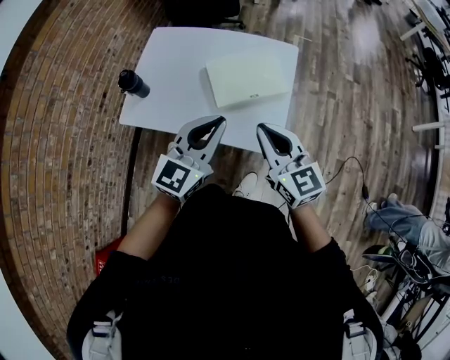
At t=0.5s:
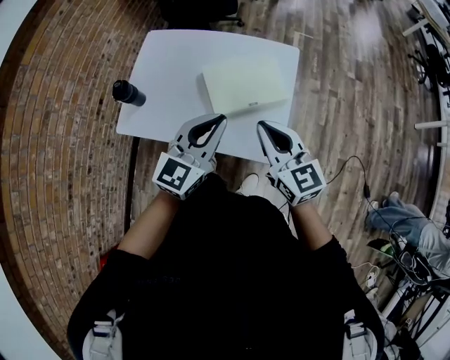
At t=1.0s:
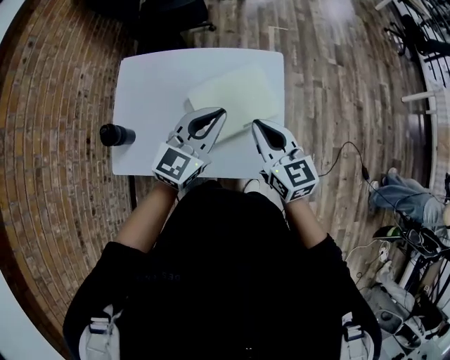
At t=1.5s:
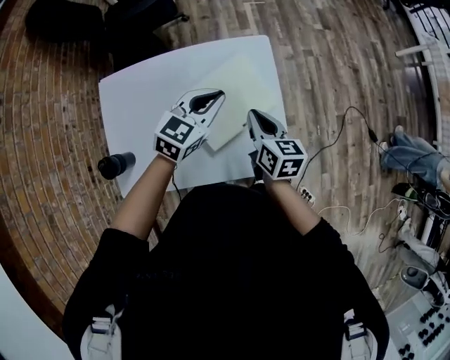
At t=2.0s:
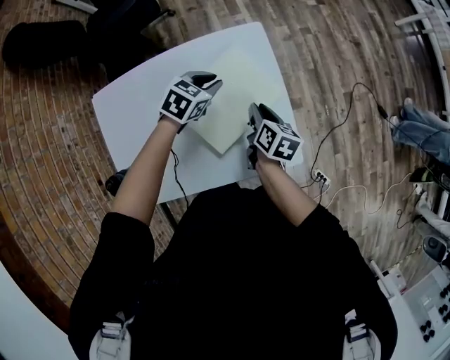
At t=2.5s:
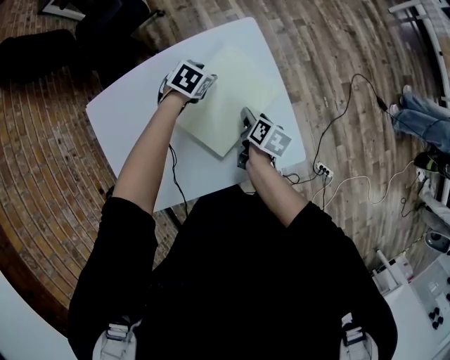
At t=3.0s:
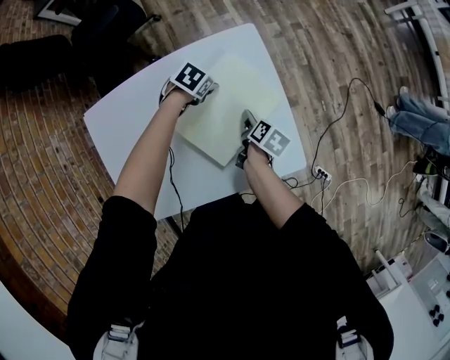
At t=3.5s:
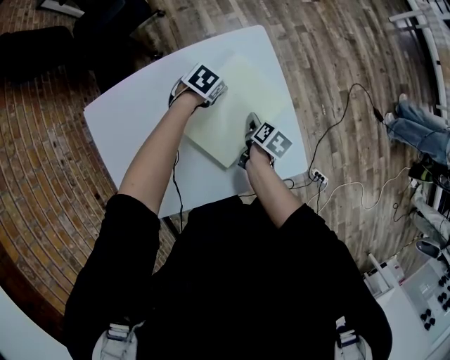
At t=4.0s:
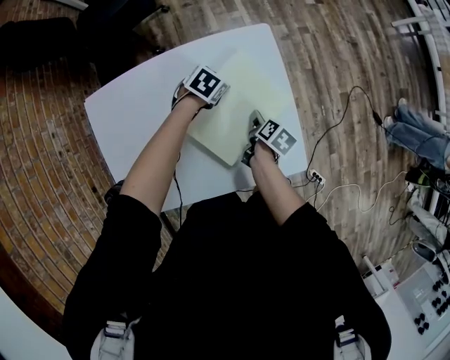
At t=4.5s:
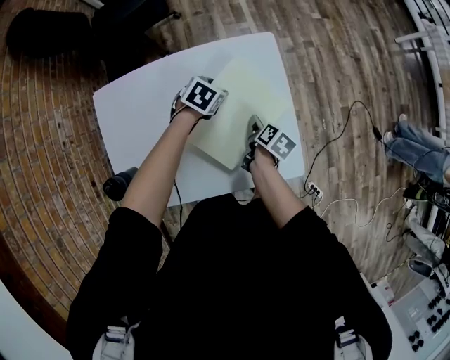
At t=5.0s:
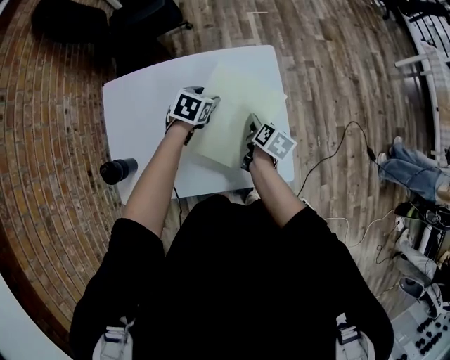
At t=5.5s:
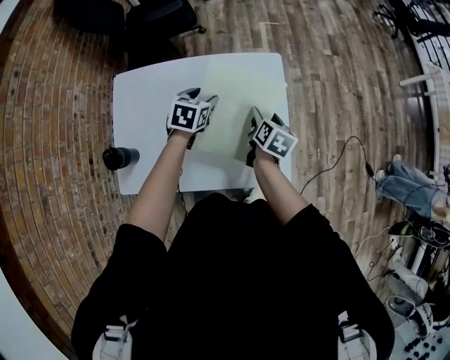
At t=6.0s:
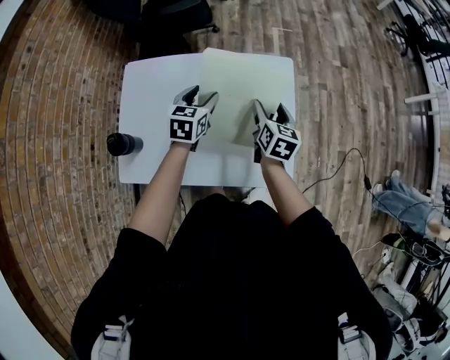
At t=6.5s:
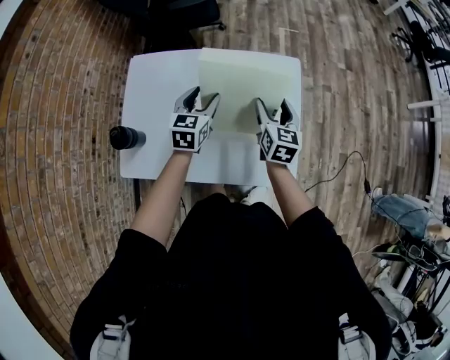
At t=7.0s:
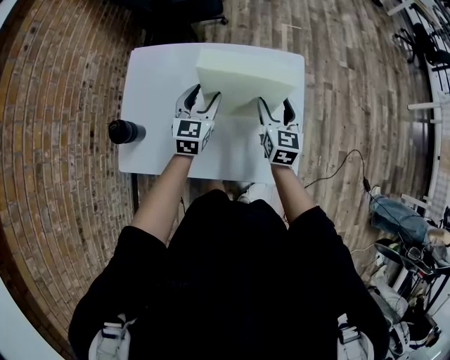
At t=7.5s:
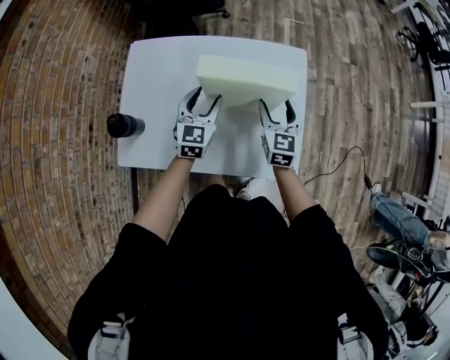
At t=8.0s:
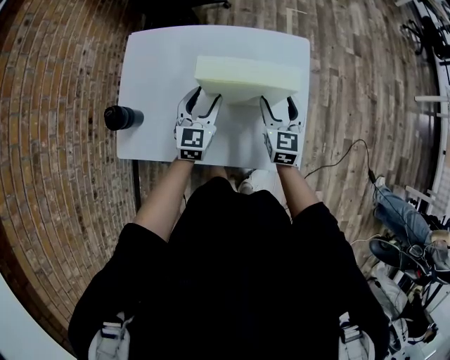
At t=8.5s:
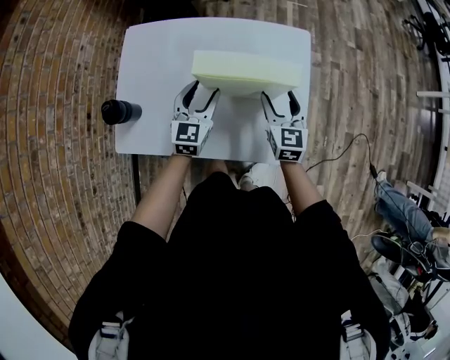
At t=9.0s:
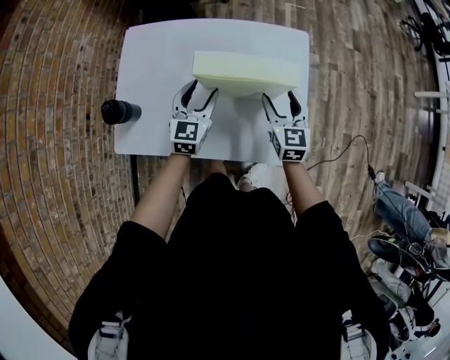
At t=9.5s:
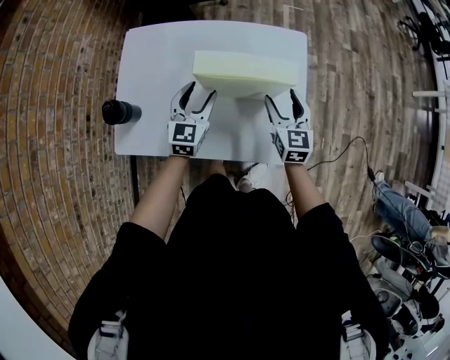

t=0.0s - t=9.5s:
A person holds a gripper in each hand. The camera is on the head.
t=0.0s - t=2.0s: The left gripper changes place by approximately 40 cm, and angles its fingers downward, by roughly 40 degrees. The right gripper shifts by about 35 cm, and tips its fingers downward by approximately 30 degrees.
t=2.0s - t=4.0s: Both grippers travel together downward, approximately 10 cm. The right gripper rotates some 30 degrees, and opens its fingers, while the left gripper opens up.
t=4.0s - t=5.5s: Both grippers move upward, about 15 cm. The left gripper rotates about 40 degrees, while the right gripper swivels roughly 30 degrees.
t=5.5s - t=7.5s: The right gripper moves to the left, about 5 cm, and rolls counterclockwise, seen from behind, by approximately 40 degrees; the left gripper goes roughly 10 cm backward and to the left, and swivels about 30 degrees.
t=7.5s - t=9.5s: There are only small adjustments of the grippers.

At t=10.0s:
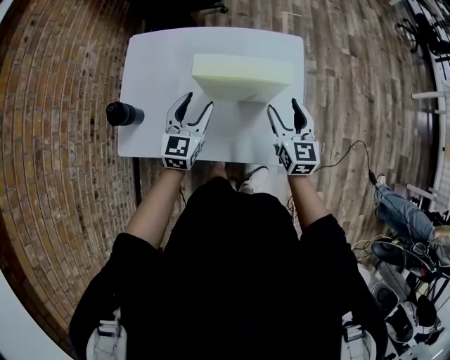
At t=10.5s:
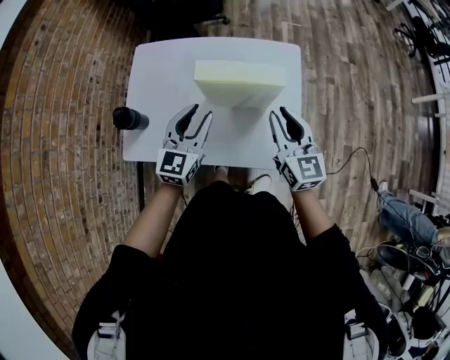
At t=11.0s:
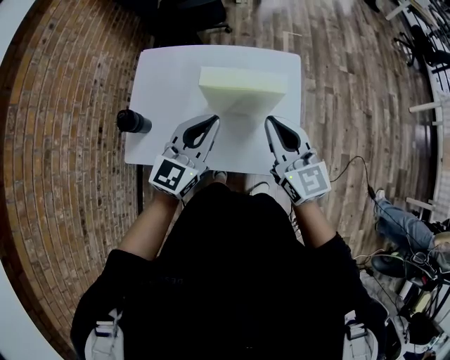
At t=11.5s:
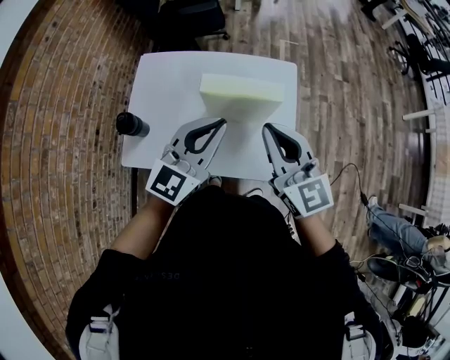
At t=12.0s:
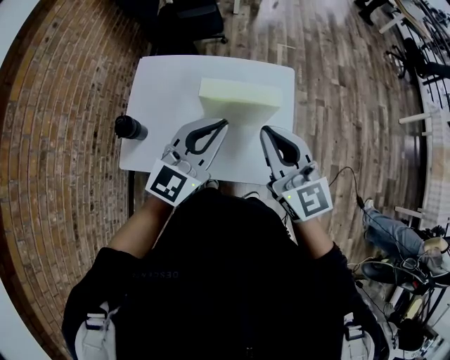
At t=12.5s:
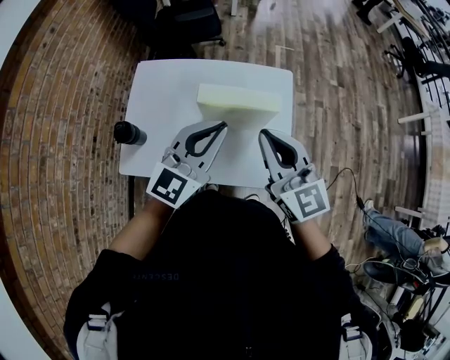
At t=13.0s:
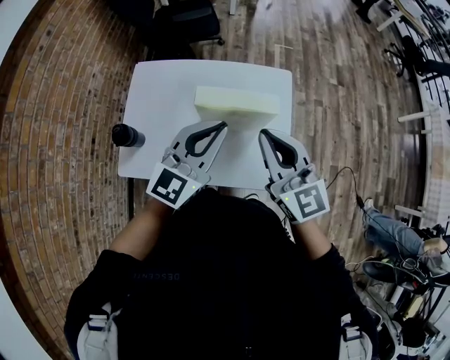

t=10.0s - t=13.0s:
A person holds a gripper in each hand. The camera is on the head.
t=10.0s - t=11.5s: Both grippers move upward, about 20 cm. The right gripper turns by roughly 30 degrees, and closes, while the left gripper rotates roughly 20 degrees, and closes.
t=11.5s - t=13.0s: The grippers make only small movements.

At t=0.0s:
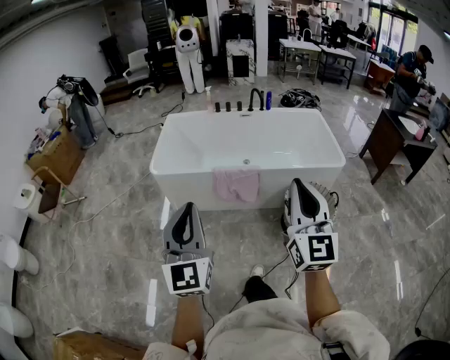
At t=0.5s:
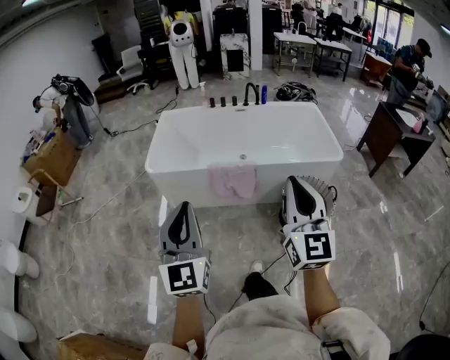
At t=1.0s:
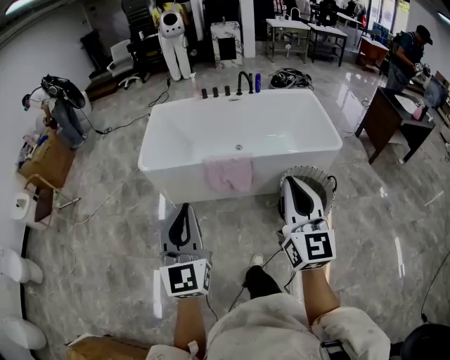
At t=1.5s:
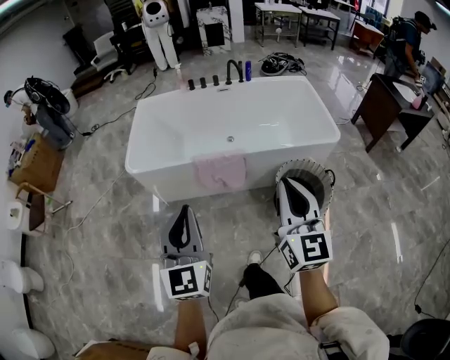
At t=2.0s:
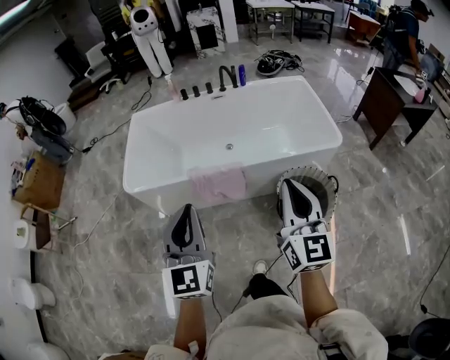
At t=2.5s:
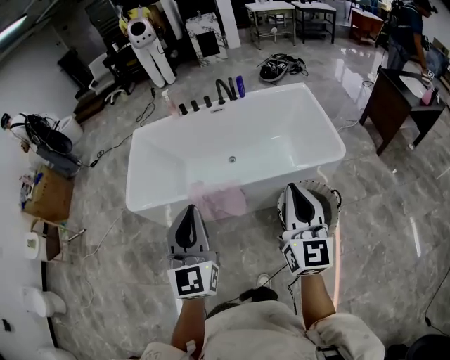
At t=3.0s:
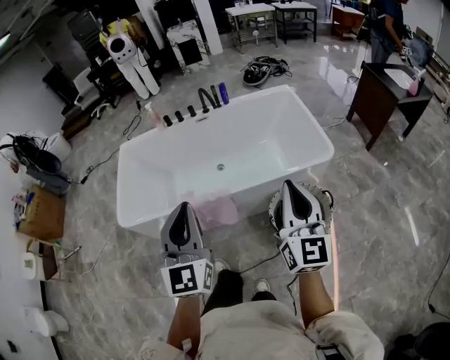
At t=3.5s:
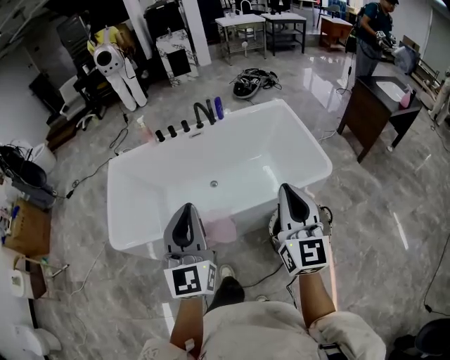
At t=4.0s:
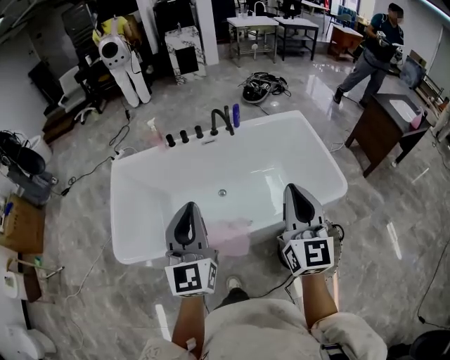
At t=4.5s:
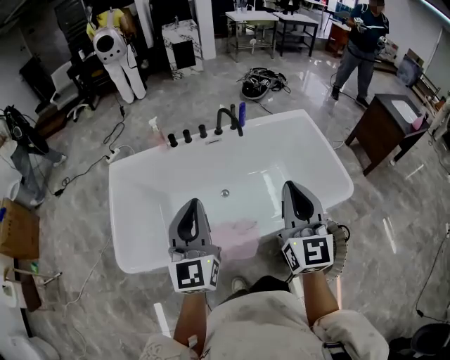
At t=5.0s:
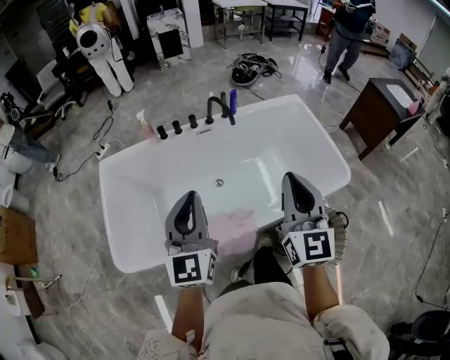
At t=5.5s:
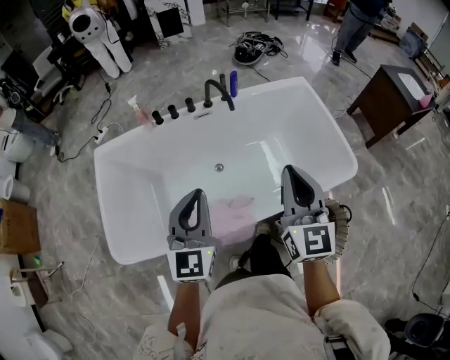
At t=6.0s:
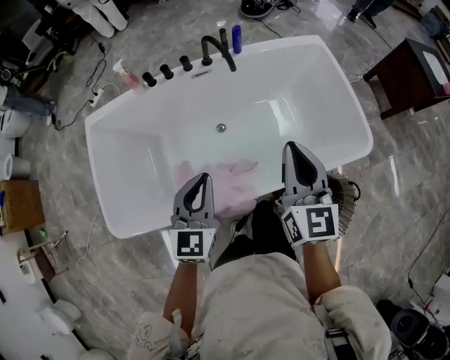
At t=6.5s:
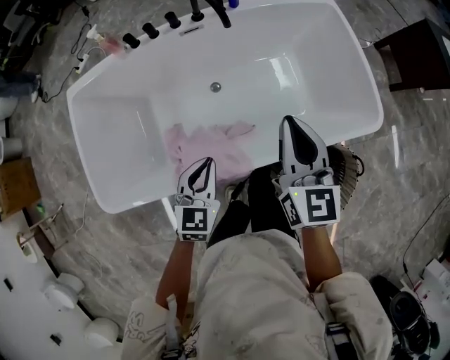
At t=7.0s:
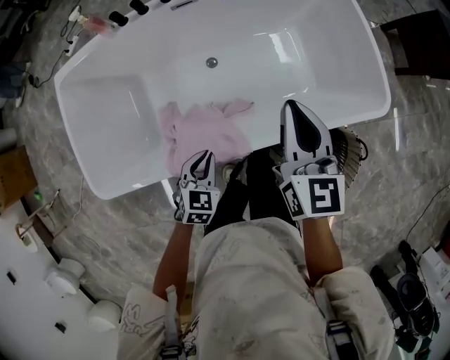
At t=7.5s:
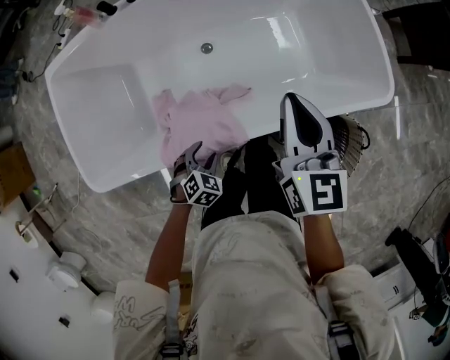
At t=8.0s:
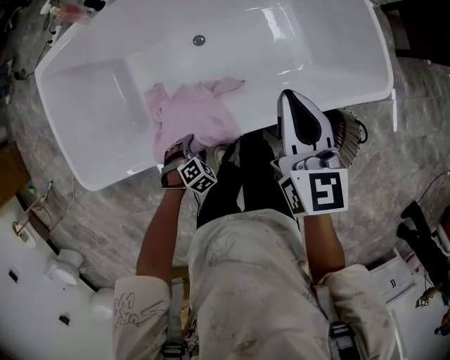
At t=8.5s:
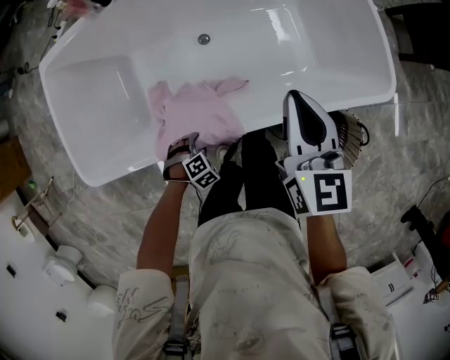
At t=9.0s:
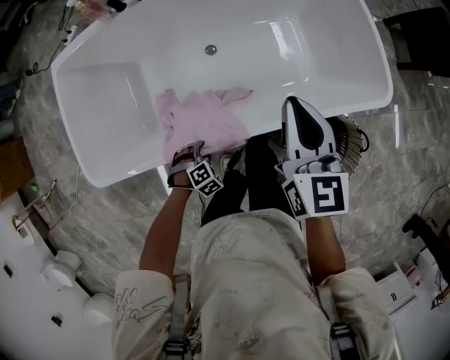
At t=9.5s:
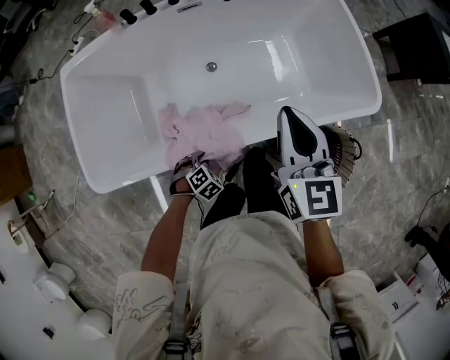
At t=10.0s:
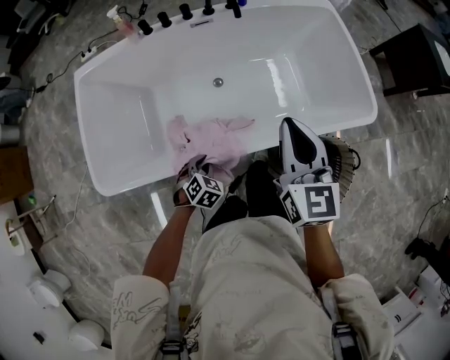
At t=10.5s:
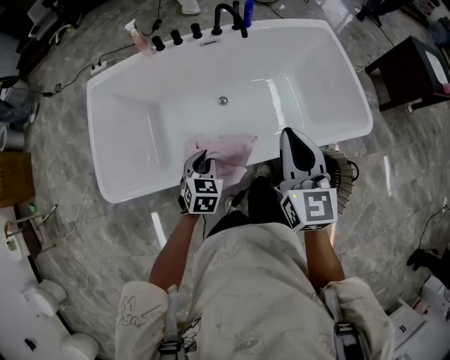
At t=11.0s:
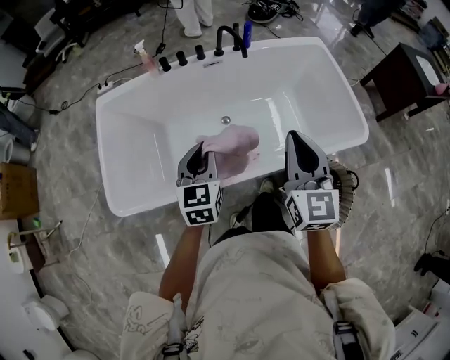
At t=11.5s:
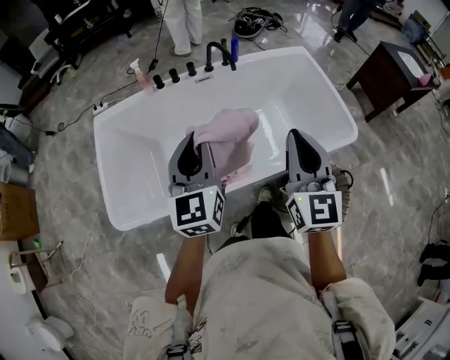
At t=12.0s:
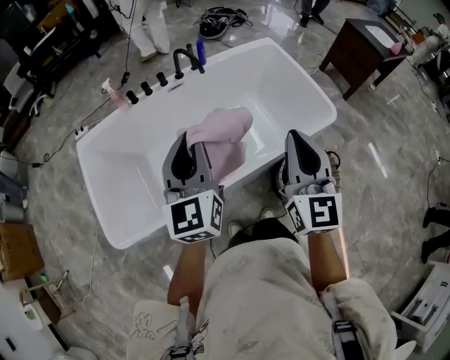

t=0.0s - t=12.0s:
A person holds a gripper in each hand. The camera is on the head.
t=0.0s - t=2.0s: The left gripper heads forward and to the right, covering roughly 25 cm; the right gripper goes some 25 cm forward, to the right and downward.
t=2.0s - t=4.0s: The grippers both shift forward by approximately 35 cm.
t=4.0s - t=6.0s: The right gripper travels forward and downward by roughly 25 cm. The left gripper goes roughly 25 cm downward and forward, and rotates approximately 30 degrees.
t=6.0s - t=8.0s: The left gripper is displaced downward by approximately 40 cm, tips its fingers downward by approximately 60 degrees, and opens. The right gripper heads downward, covering about 15 cm.
t=8.0s - t=10.0s: The left gripper goes approximately 15 cm upward, turns by some 30 degrees, and closes up; the right gripper changes place by some 15 cm.
t=10.0s - t=12.0s: The left gripper is displaced upward by about 40 cm, and angles its fingers upward, by some 60 degrees, while the right gripper moves upward and backward, about 20 cm, and swivels approximately 20 degrees.

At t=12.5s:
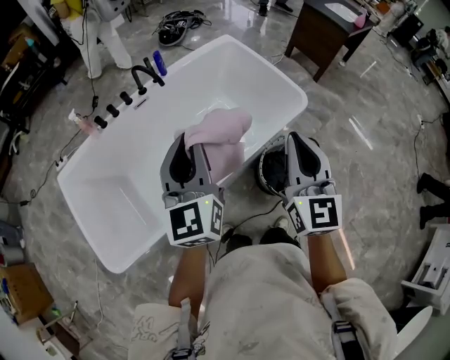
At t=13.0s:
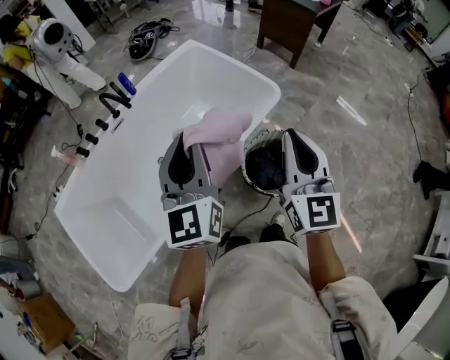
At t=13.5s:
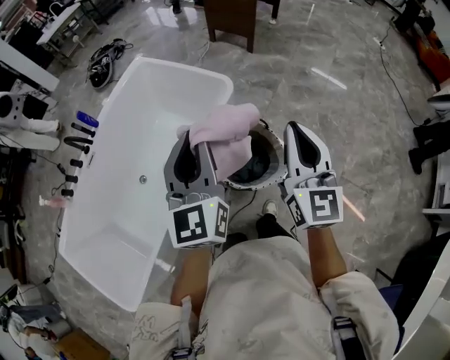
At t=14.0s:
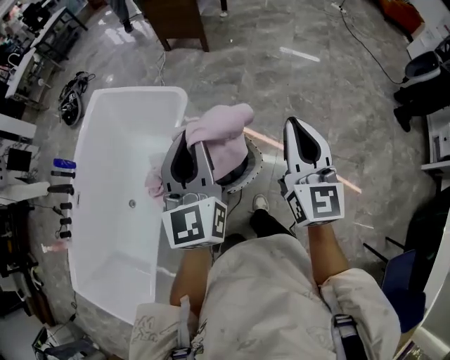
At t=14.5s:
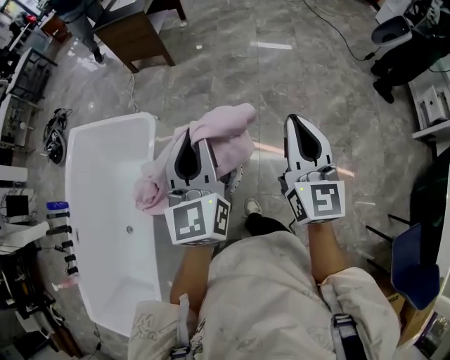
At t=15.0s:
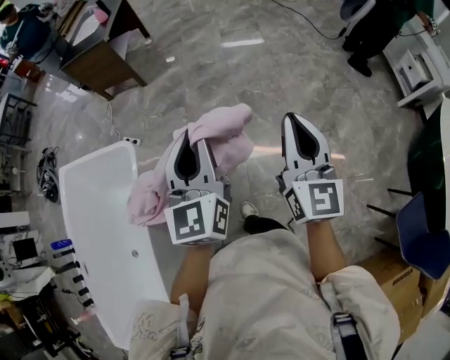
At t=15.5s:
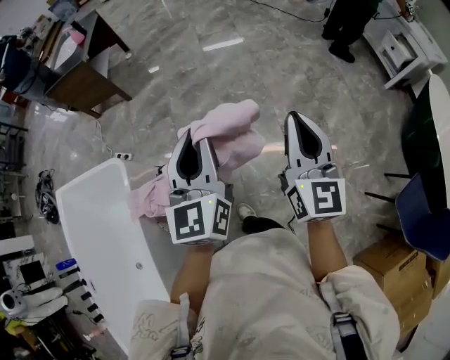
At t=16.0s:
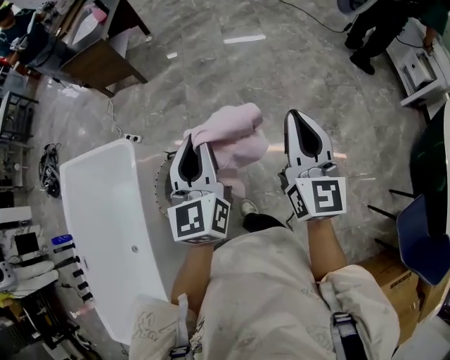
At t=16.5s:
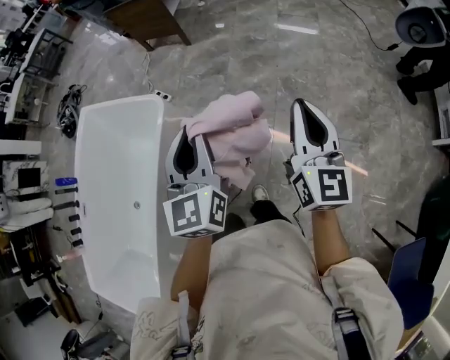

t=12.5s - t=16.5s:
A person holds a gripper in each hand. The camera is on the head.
t=12.5s - t=14.5s: The pair of grippers is taken about 60 cm. The left gripper changes its angle by about 50 degrees; the right gripper changes its angle by about 50 degrees.
t=14.5s - t=16.5s: The left gripper reaches approximately 15 cm to the right, then returns; the right gripper goes approximately 5 cm forward, and travels to the right and back again, some 15 cm each way.
